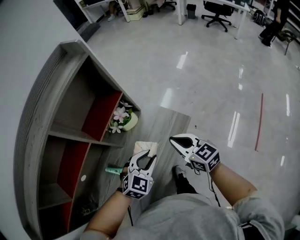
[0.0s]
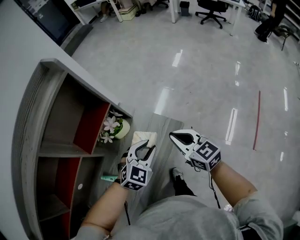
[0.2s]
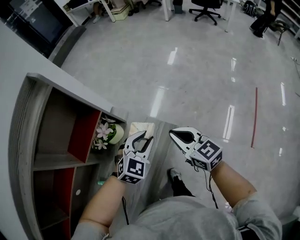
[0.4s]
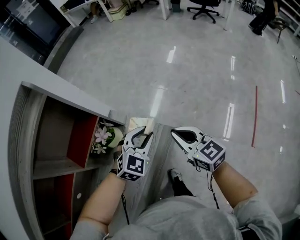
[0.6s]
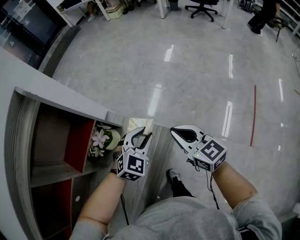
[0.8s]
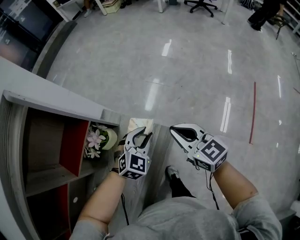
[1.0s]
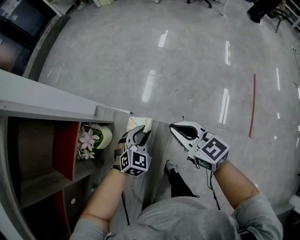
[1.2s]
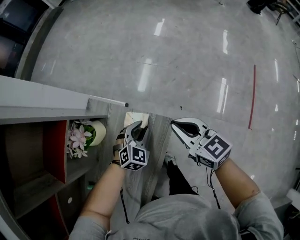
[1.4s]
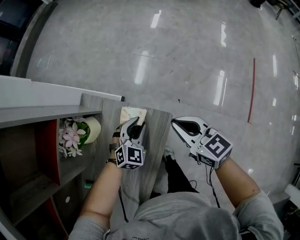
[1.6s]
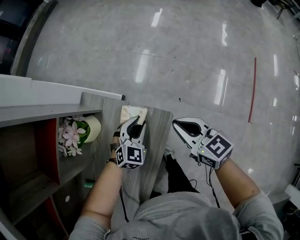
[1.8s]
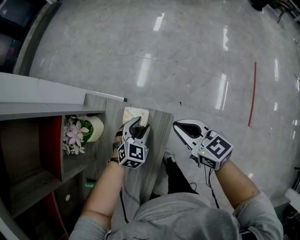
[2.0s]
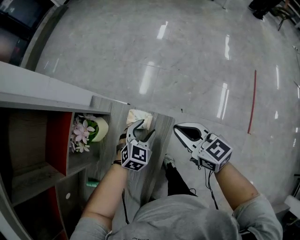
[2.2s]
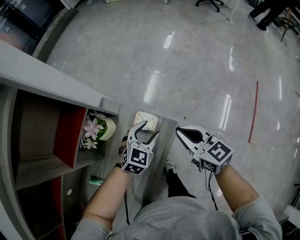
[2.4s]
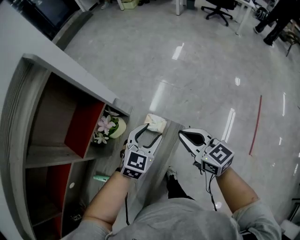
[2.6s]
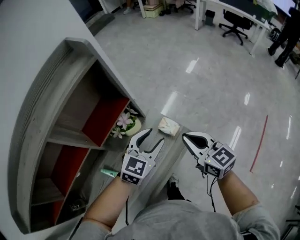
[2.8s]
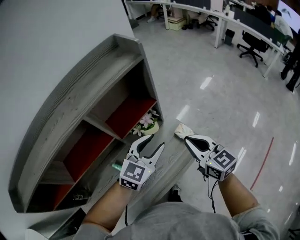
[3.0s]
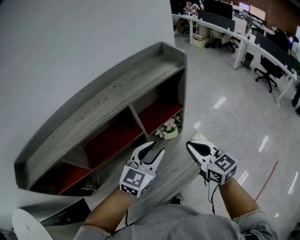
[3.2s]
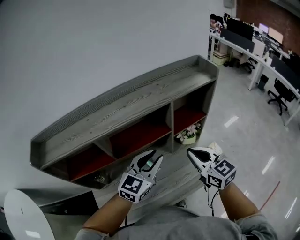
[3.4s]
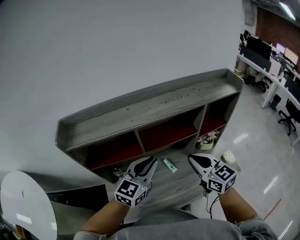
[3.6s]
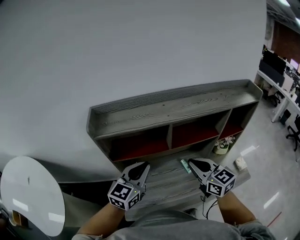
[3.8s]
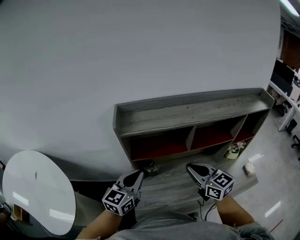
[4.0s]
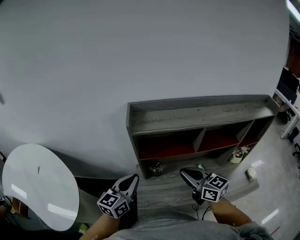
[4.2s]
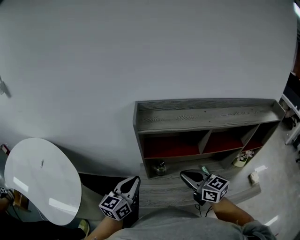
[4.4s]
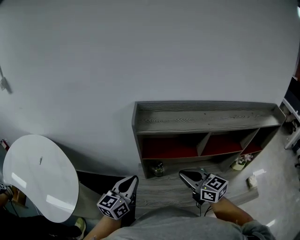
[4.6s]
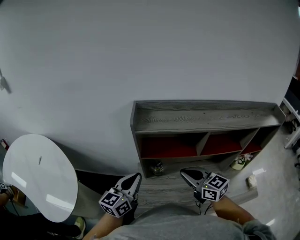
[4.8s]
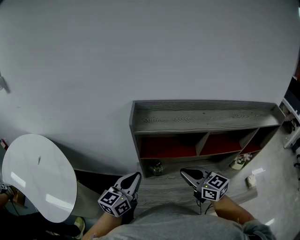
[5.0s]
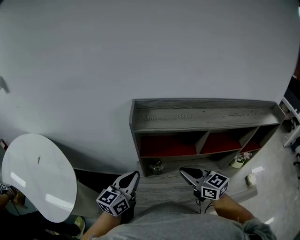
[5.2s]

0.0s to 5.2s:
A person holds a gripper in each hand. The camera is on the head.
0.0s to 1.8s: The right gripper shifts roughly 20 cm to the right, downward and forward. Meanwhile the left gripper is displaced downward, forward and to the right by approximately 30 cm.
1.8s to 3.4s: The right gripper ends up approximately 50 cm from where it was, and turns by about 40 degrees; the left gripper moves upward, some 40 cm, rotates approximately 50 degrees, and opens, then closes again.
3.4s to 5.2s: Both grippers are carried some 40 cm. The left gripper swivels about 40 degrees, and closes. The right gripper turns by about 30 degrees.

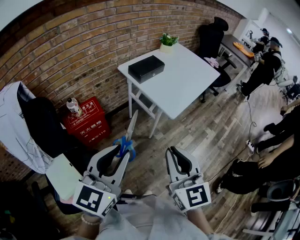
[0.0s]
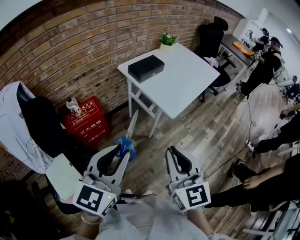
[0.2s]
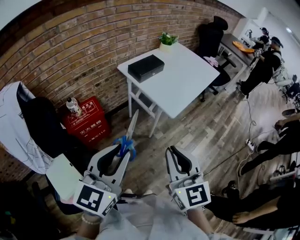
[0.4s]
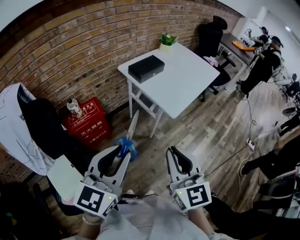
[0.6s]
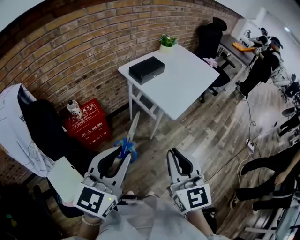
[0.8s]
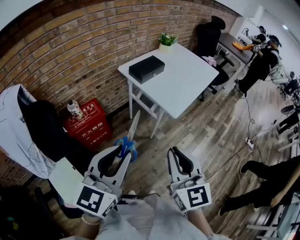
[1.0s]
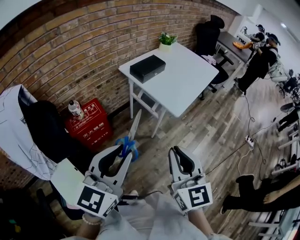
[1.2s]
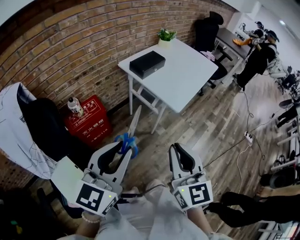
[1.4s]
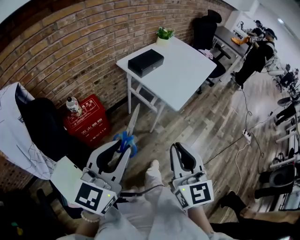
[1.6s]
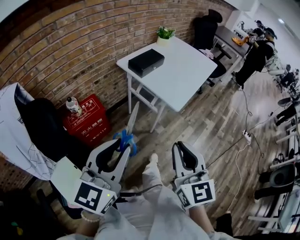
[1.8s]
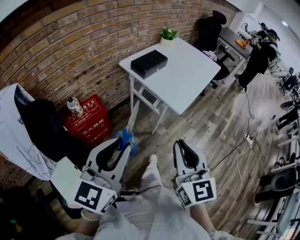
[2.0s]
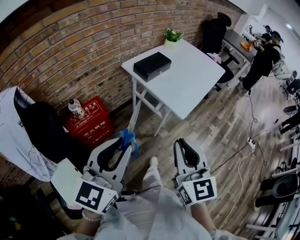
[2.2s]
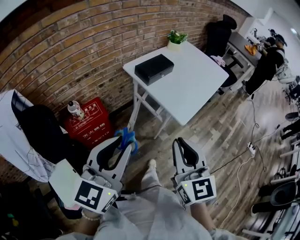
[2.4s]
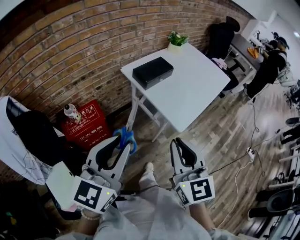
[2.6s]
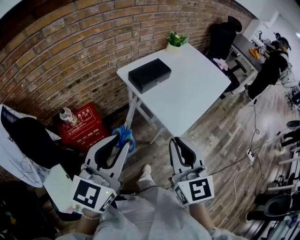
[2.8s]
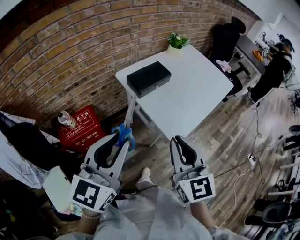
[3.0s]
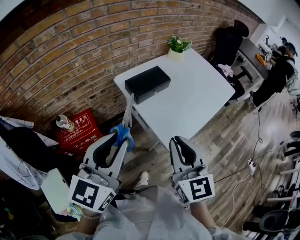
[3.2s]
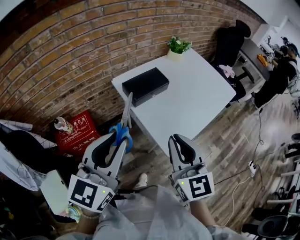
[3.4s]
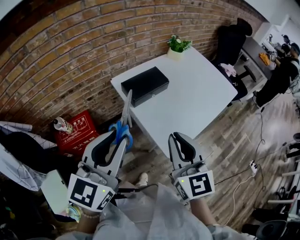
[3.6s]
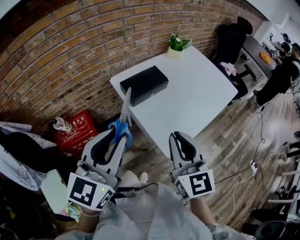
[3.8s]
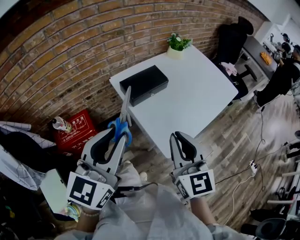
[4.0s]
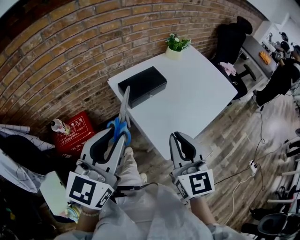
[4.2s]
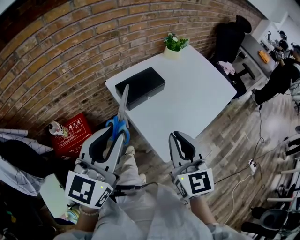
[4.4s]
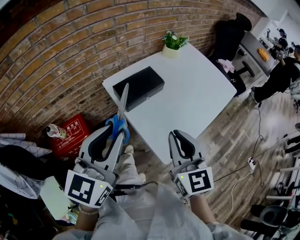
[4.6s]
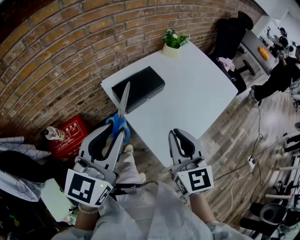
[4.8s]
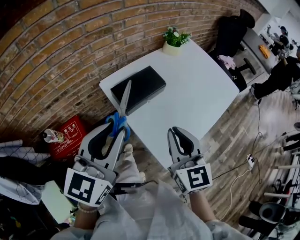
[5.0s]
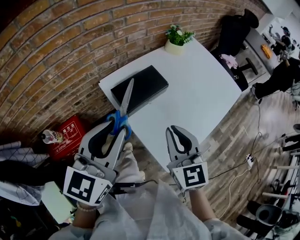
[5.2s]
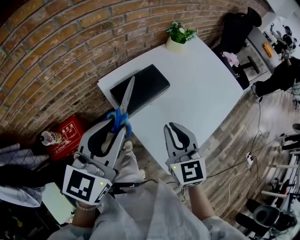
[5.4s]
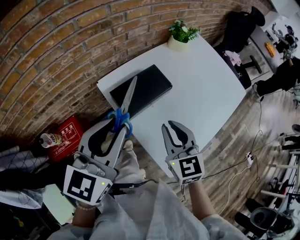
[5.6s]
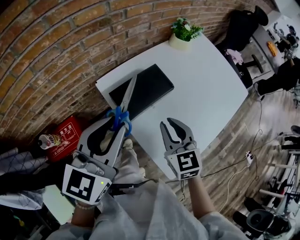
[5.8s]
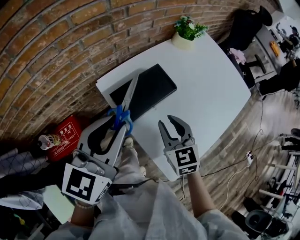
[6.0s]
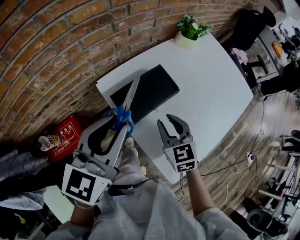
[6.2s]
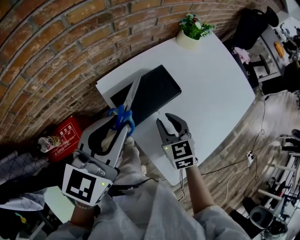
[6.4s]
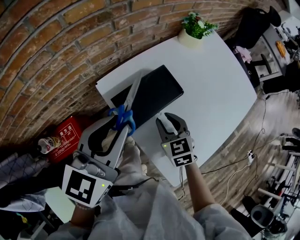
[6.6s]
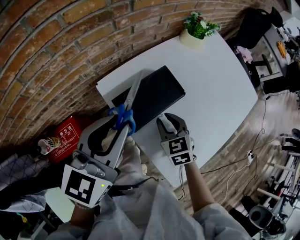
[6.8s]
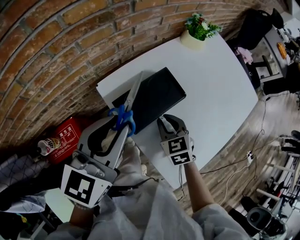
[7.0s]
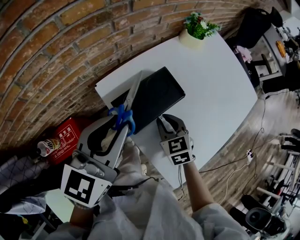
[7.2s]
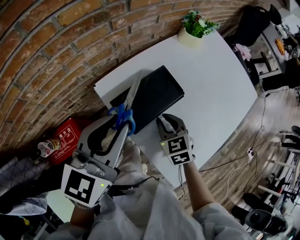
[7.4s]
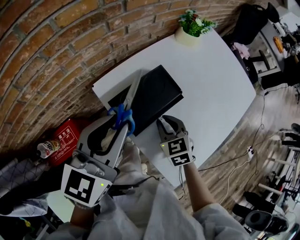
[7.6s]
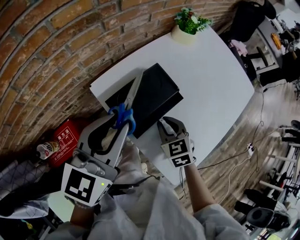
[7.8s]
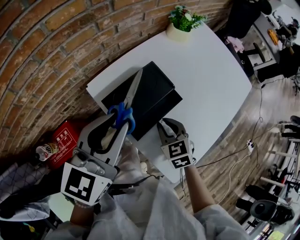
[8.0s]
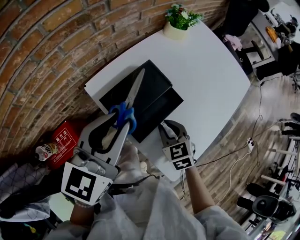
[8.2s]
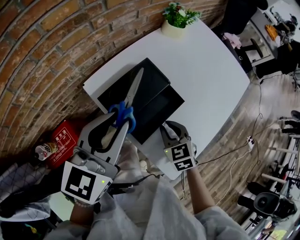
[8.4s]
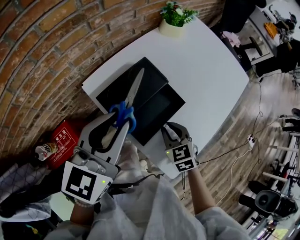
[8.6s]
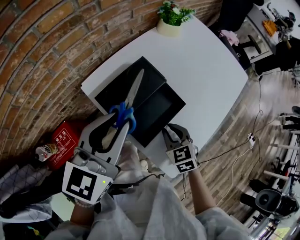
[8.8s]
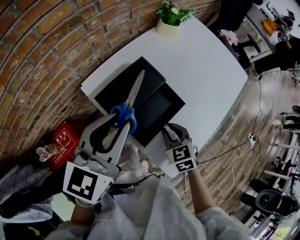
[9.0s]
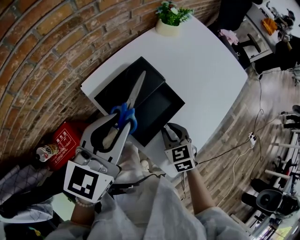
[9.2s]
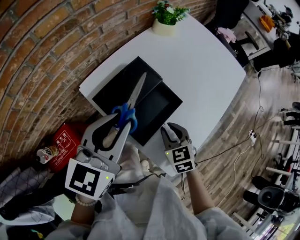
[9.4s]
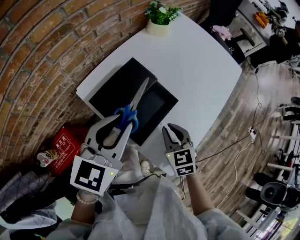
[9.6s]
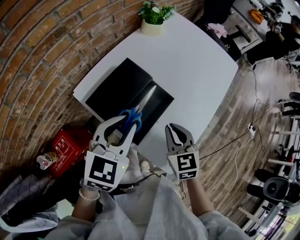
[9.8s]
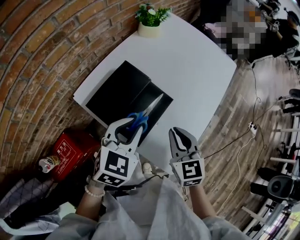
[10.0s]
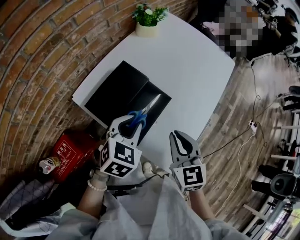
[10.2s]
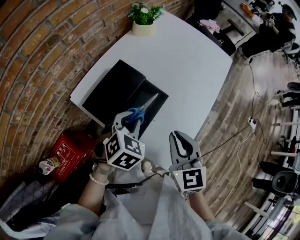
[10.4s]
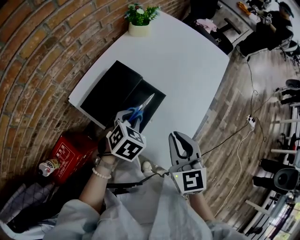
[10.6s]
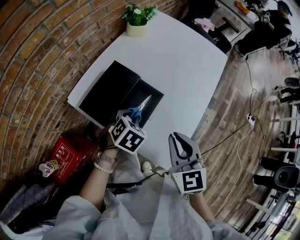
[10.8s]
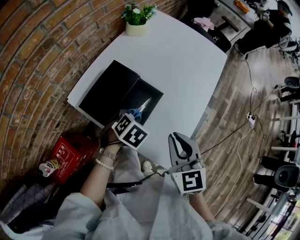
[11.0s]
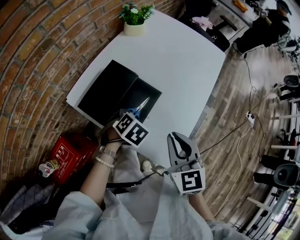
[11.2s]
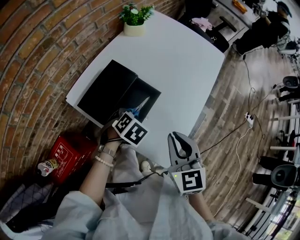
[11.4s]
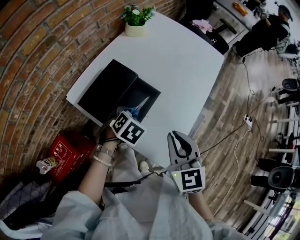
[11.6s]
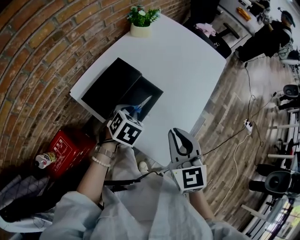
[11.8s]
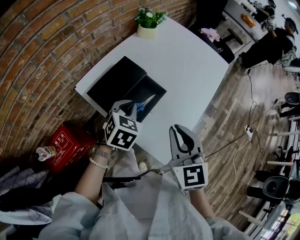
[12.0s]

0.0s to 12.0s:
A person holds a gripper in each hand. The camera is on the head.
0.0s to 1.6s: The right gripper moves roughly 5 cm. Meanwhile the left gripper is displaced to the left by approximately 5 cm.
1.6s to 3.0s: The two grippers go approximately 25 cm forward.
3.0s to 4.4s: Both grippers move forward and to the right, roughly 15 cm.
4.4s to 6.0s: The left gripper heads forward, covering roughly 20 cm. The right gripper is displaced forward and downward by about 30 cm.
6.0s to 7.6s: The left gripper is displaced forward by some 5 cm, while the right gripper moves downward and forward, about 10 cm.
7.6s to 9.0s: The right gripper is displaced to the right and backward by approximately 10 cm, while the left gripper travels to the right by about 5 cm.
9.0s to 10.4s: The right gripper moves upward and to the right, roughly 15 cm, and rotates about 30 degrees, while the left gripper heads downward and to the right, covering some 20 cm, and tilts its fingers some 40 degrees downward.
10.4s to 12.0s: The left gripper goes downward and returns, about 10 cm each way. Meanwhile the right gripper is displaced upward by roughly 5 cm.

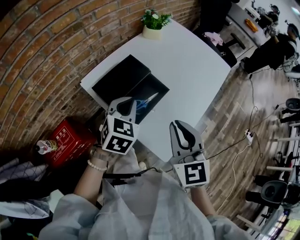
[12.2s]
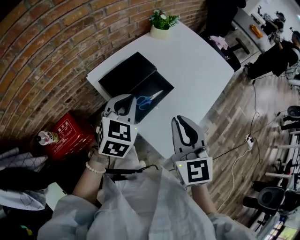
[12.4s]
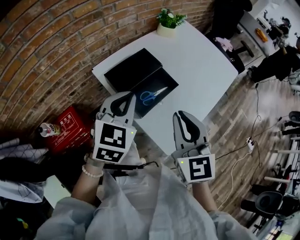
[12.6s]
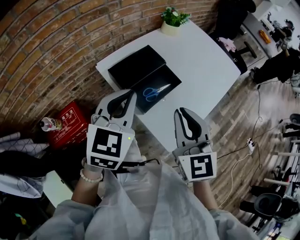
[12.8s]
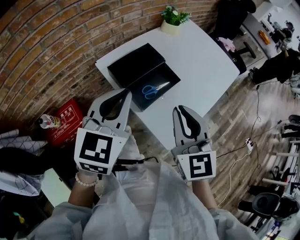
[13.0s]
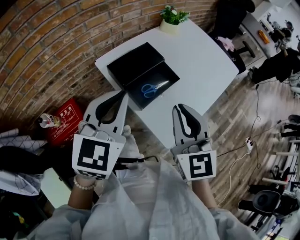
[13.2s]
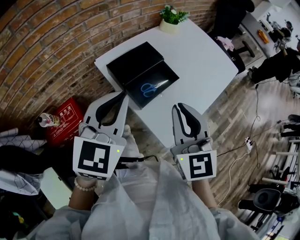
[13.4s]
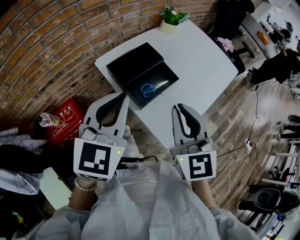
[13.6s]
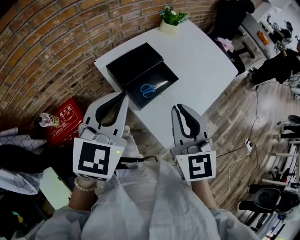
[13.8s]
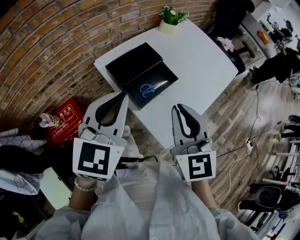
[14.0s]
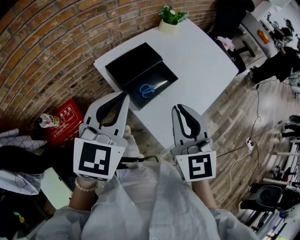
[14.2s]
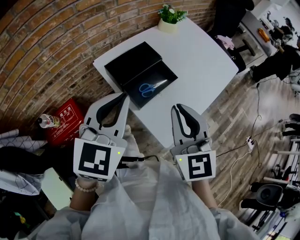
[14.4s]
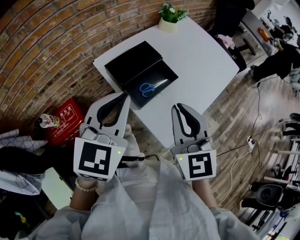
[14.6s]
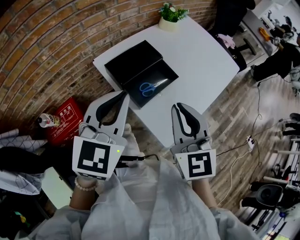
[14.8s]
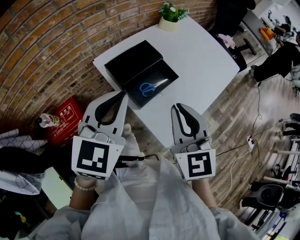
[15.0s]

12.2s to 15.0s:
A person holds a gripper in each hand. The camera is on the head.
12.2s to 13.6s: The right gripper ends up some 5 cm from where it was. Meanwhile the left gripper is displaced upward and backward by about 20 cm, and turns by about 30 degrees.
13.6s to 15.0s: Both grippers stay about where they are.

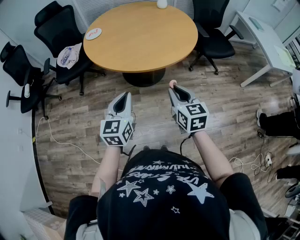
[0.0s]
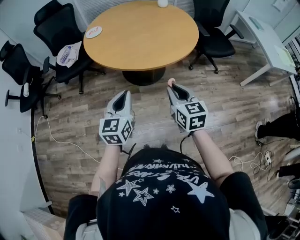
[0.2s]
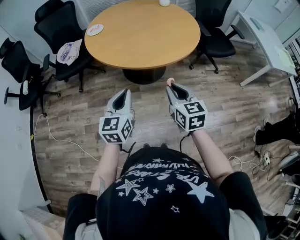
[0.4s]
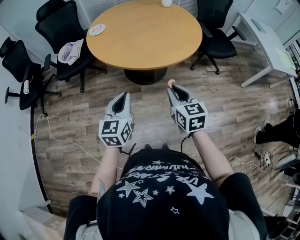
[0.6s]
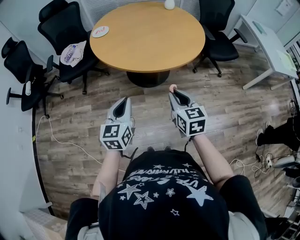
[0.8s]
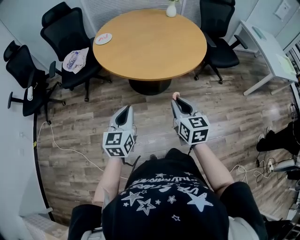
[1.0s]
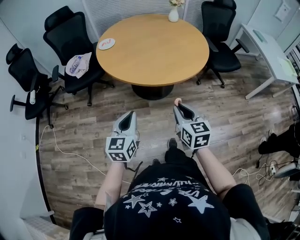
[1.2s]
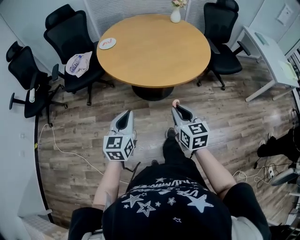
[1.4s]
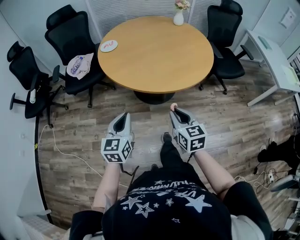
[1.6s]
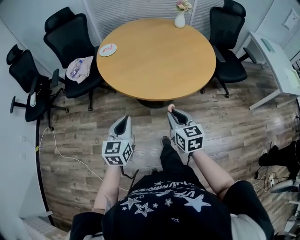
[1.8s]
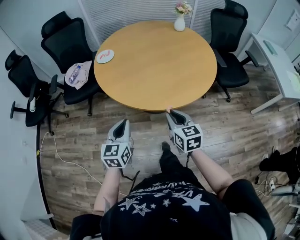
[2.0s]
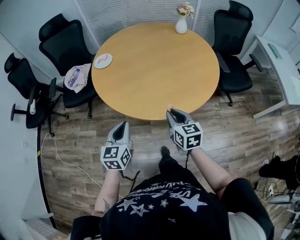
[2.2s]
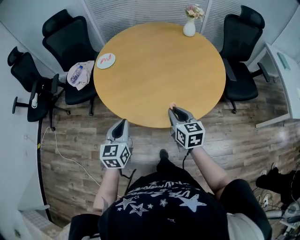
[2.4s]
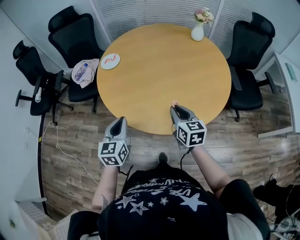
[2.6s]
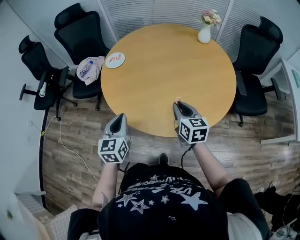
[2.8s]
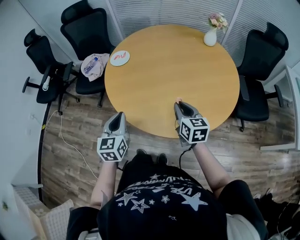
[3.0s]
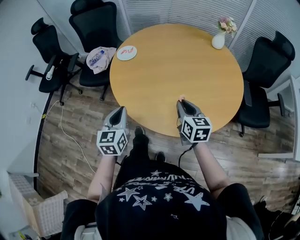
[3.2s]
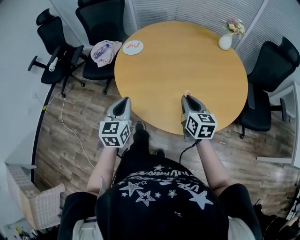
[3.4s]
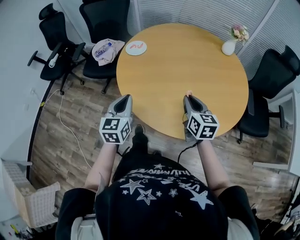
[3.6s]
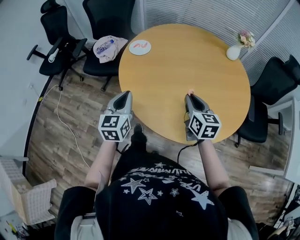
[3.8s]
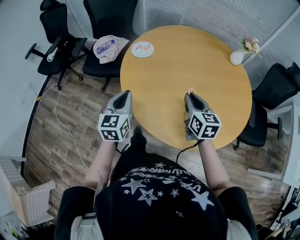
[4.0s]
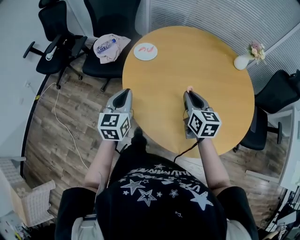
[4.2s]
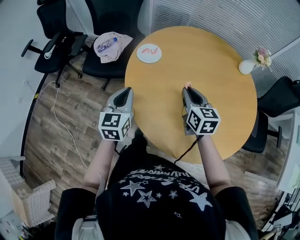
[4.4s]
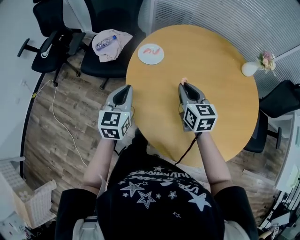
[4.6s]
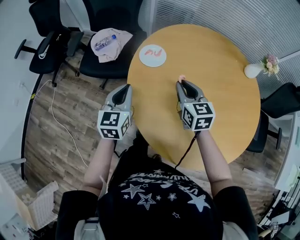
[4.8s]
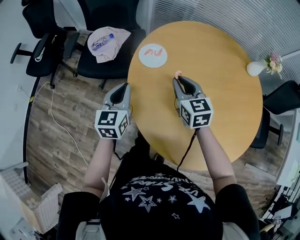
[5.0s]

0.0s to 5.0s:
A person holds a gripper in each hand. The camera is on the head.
0.0s to 1.6s: Both grippers move to the left, approximately 10 cm.
1.6s to 3.4s: The two grippers go some 30 cm forward. The left gripper swivels about 20 degrees.
3.4s to 5.0s: Both grippers travel together forward and to the left, about 35 cm. The right gripper changes its angle by approximately 20 degrees.
